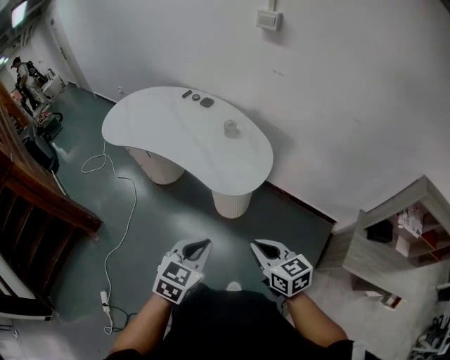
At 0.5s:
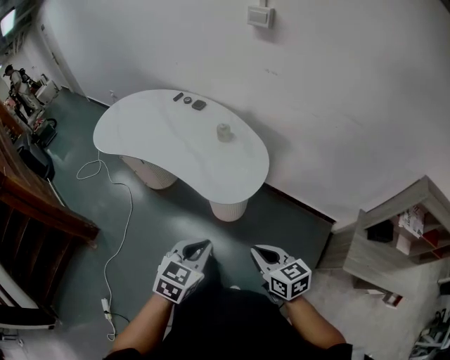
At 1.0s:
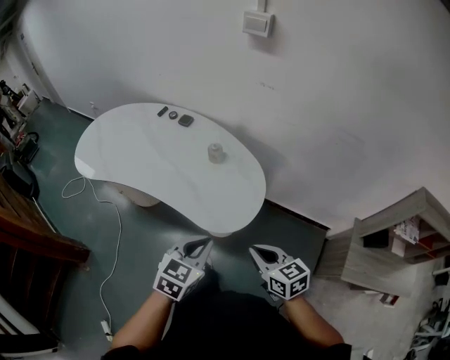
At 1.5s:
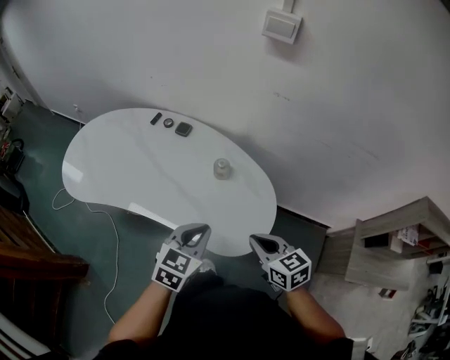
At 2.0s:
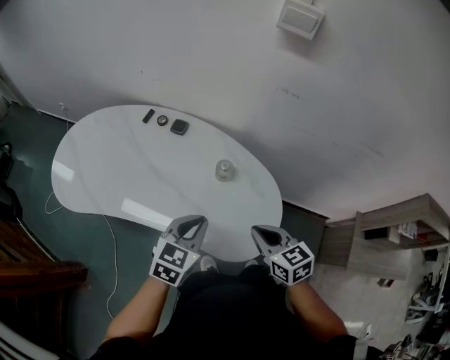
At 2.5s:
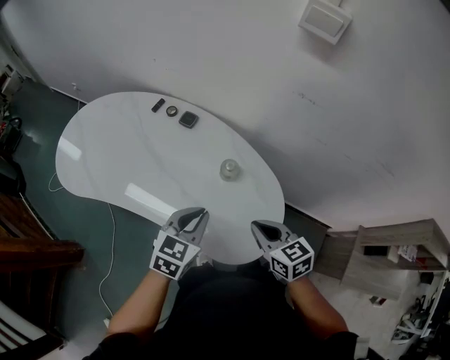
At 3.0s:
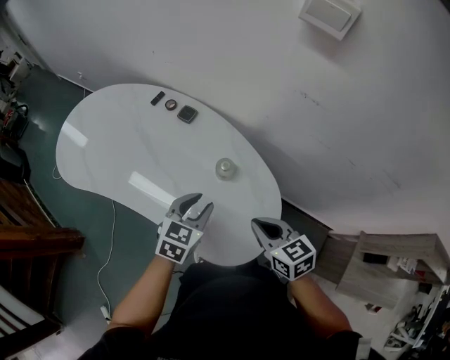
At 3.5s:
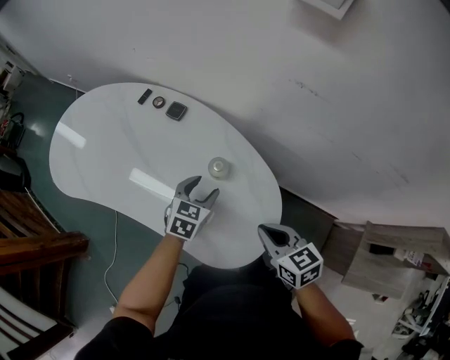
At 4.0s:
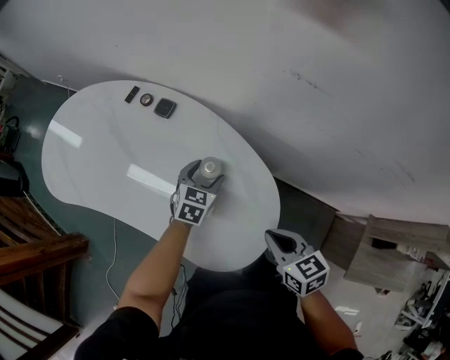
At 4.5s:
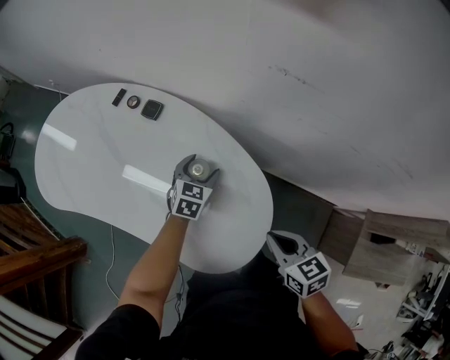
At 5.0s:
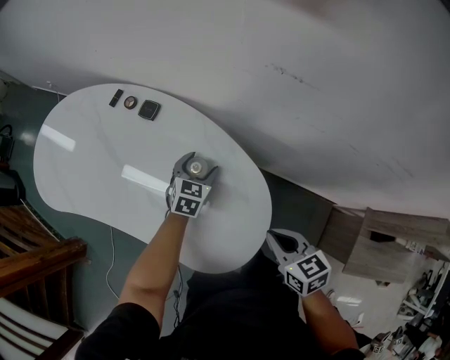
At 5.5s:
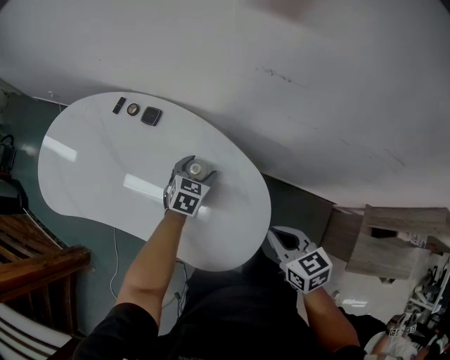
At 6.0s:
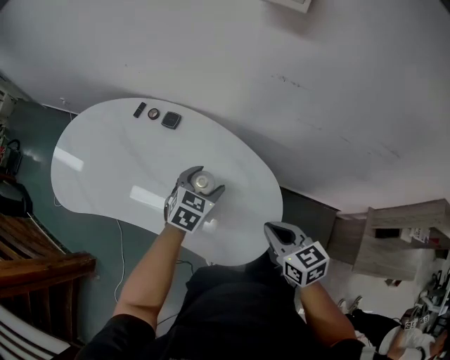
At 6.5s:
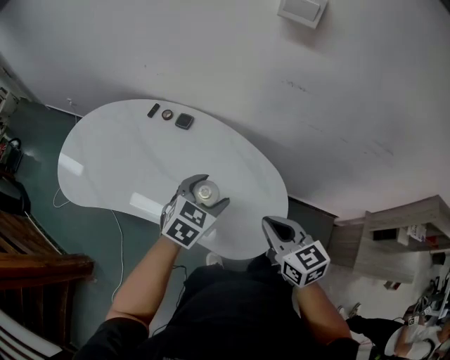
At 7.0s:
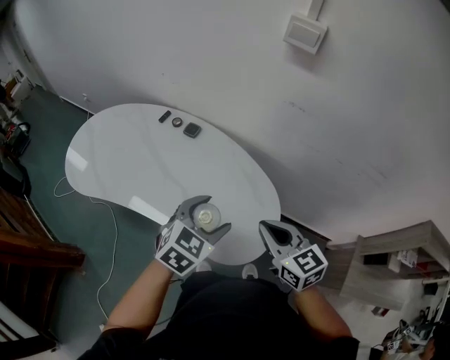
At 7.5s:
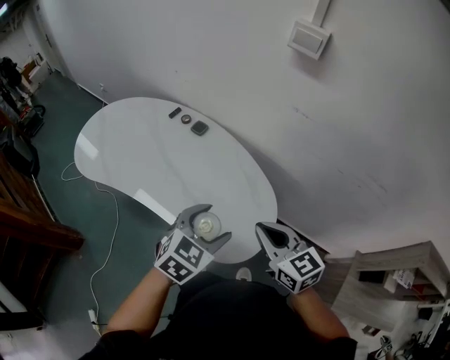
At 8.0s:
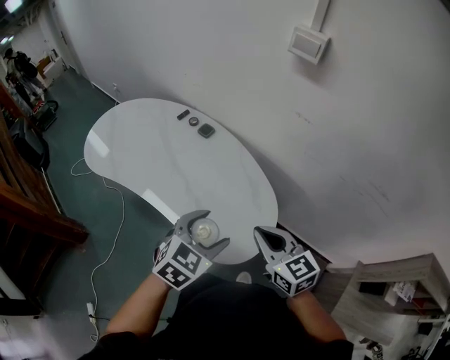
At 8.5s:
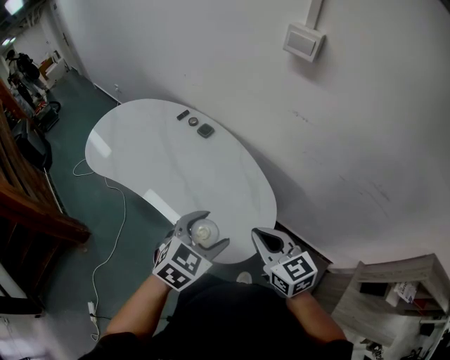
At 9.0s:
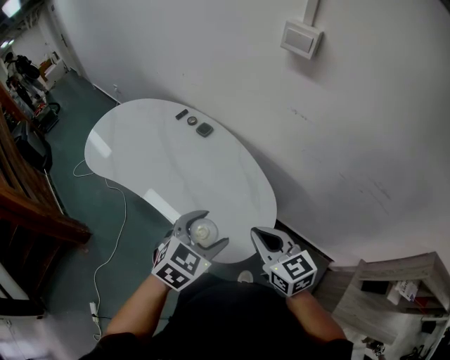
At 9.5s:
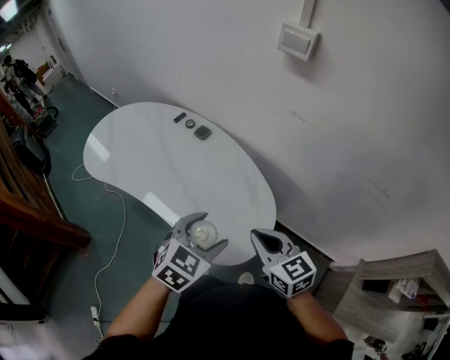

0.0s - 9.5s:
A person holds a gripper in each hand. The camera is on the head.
0.0s - 2.0s: The two grippers go some 40 cm forward.
2.0s - 4.0s: The right gripper shifts approximately 15 cm to the right, downward and forward. Meanwhile the left gripper shifts some 30 cm forward, downward and to the right, and opens.
4.0s - 5.5s: The grippers make only small movements.
5.5s - 7.5s: The right gripper is displaced upward, to the left and backward by approximately 20 cm, and changes its angle by about 30 degrees. The left gripper moves backward and upward, about 35 cm.
7.5s - 9.5s: The grippers make only small movements.

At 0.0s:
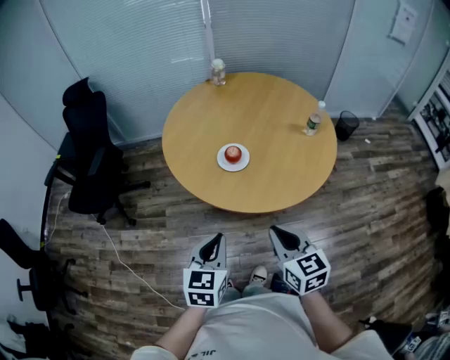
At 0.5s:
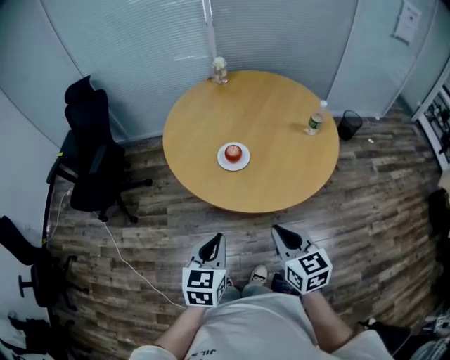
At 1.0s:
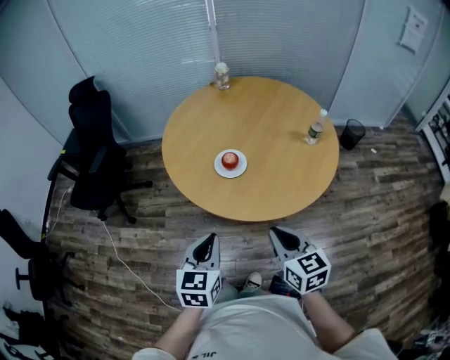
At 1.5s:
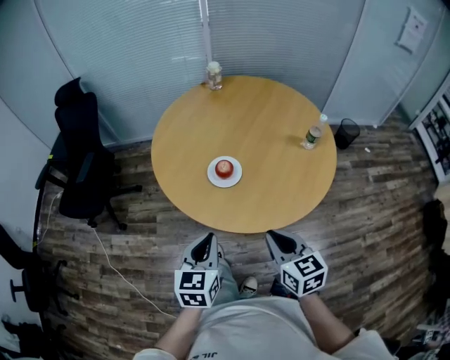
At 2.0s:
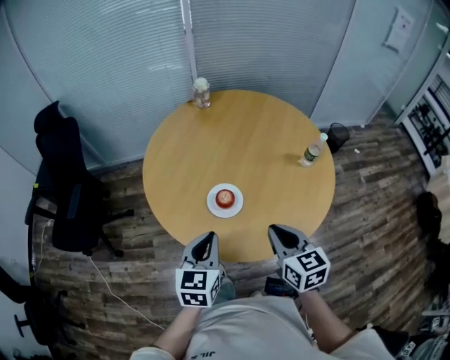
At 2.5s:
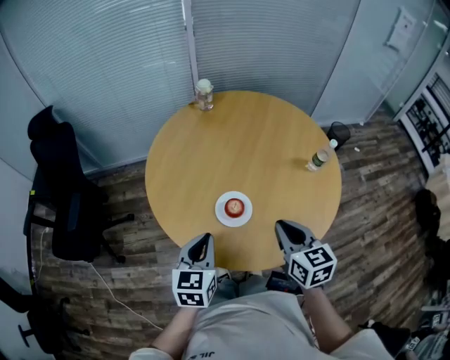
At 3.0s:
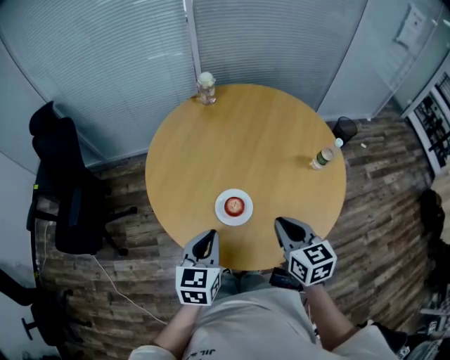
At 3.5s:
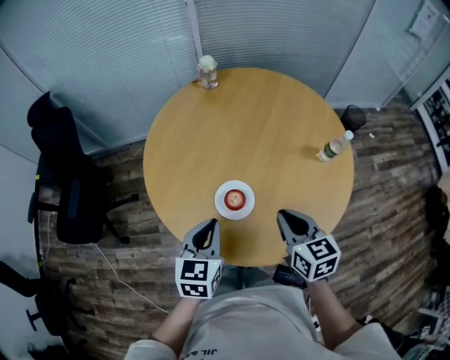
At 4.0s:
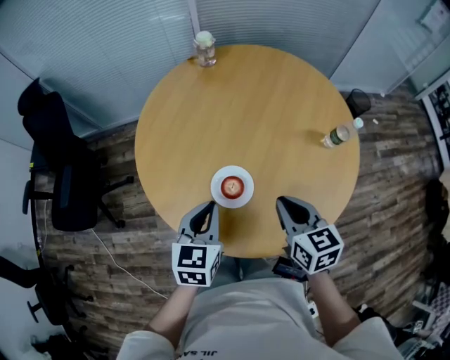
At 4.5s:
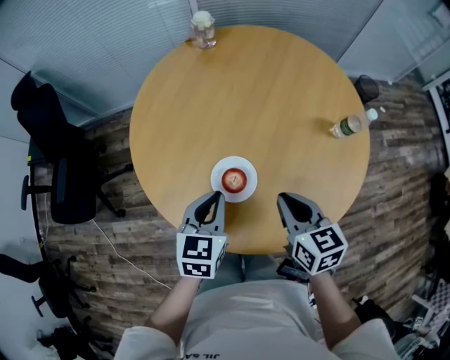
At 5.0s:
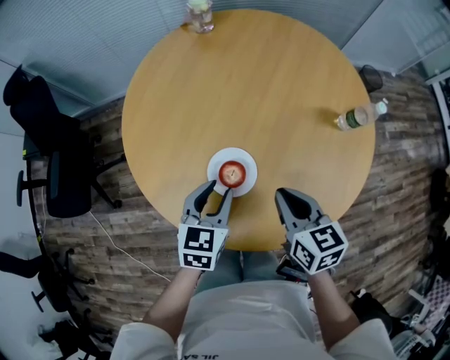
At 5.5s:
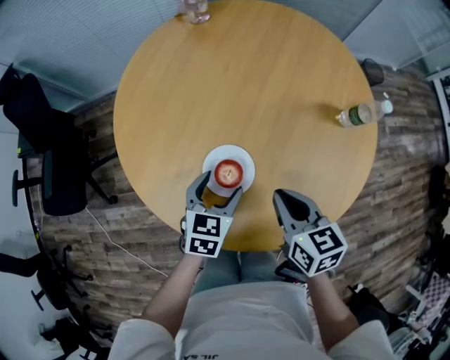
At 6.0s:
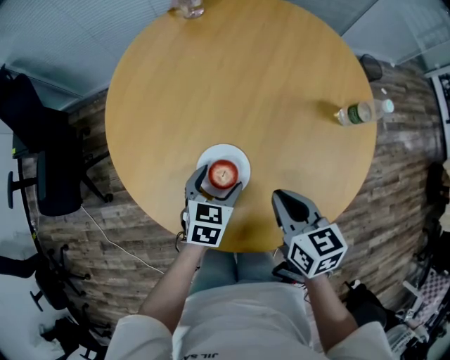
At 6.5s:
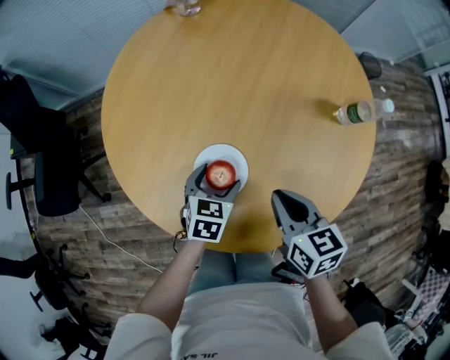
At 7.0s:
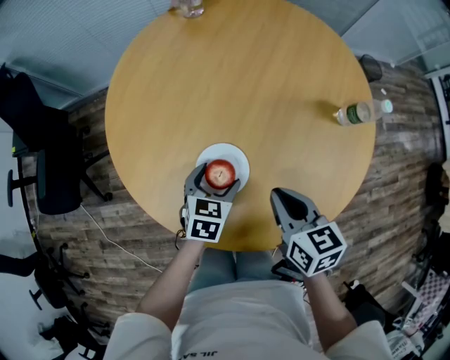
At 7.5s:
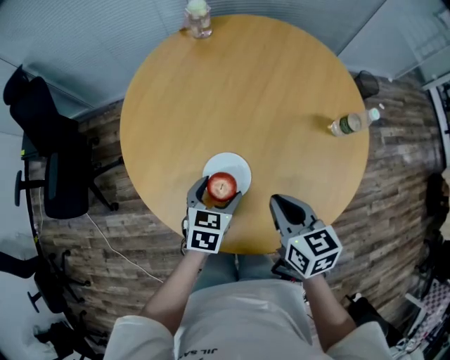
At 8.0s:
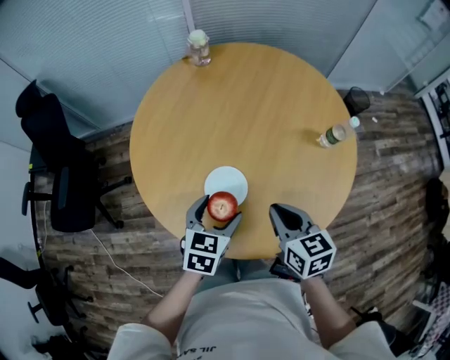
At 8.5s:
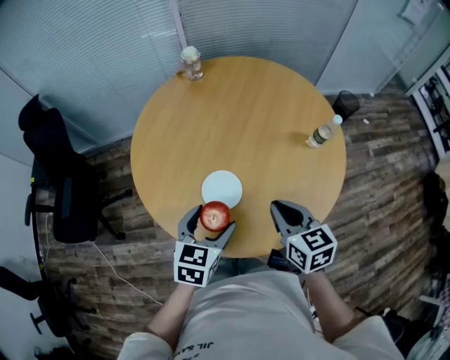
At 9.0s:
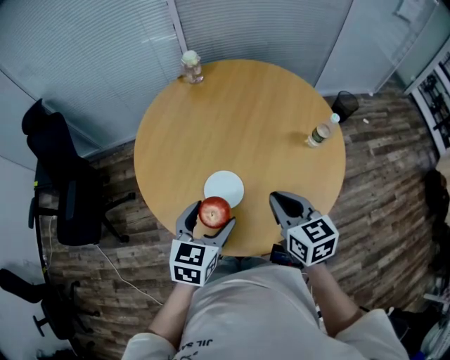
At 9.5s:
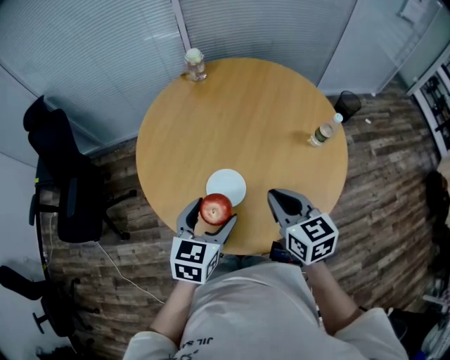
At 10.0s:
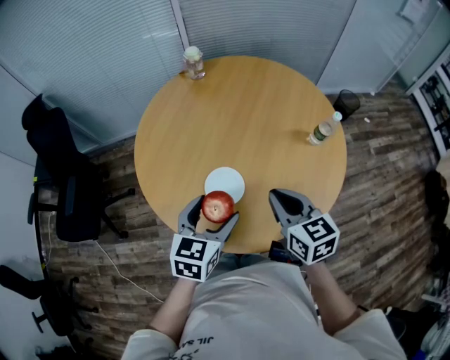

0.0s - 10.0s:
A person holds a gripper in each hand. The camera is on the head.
0.0s - 2.0s: Both grippers move forward, approximately 20 cm.
2.0s - 4.0s: The two grippers go some 10 cm forward.
4.0s - 6.0s: The left gripper moves downward, some 15 cm, and opens up; the right gripper moves downward, roughly 10 cm.
6.0s - 8.0s: The left gripper goes roughly 10 cm upward, while the right gripper shifts approximately 5 cm upward.
8.0s - 10.0s: Both grippers move upward, some 5 cm.

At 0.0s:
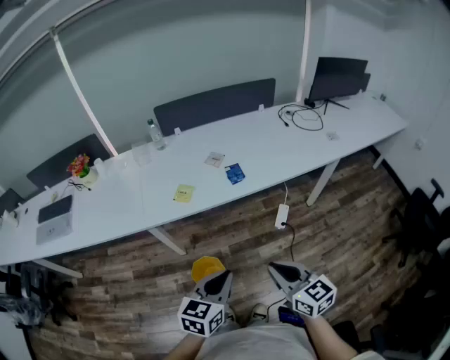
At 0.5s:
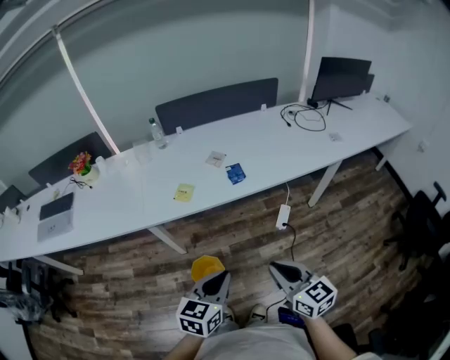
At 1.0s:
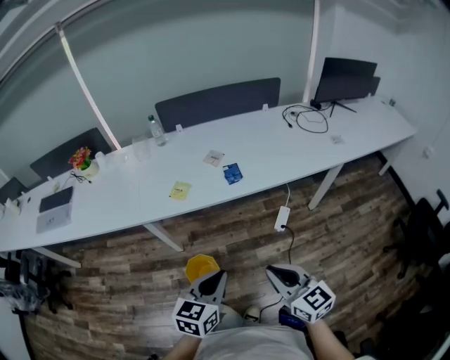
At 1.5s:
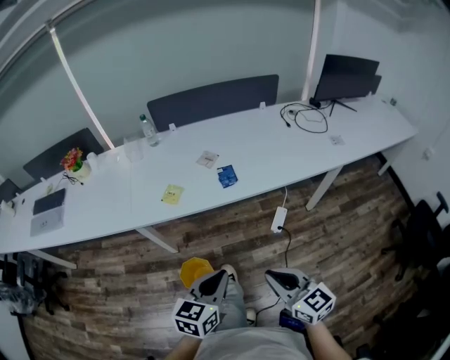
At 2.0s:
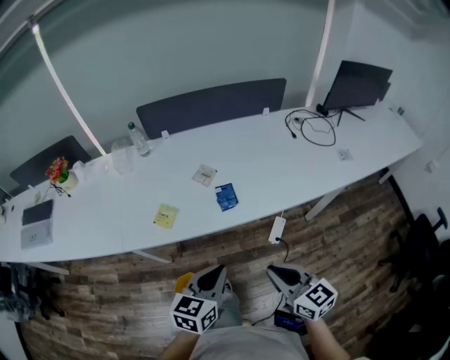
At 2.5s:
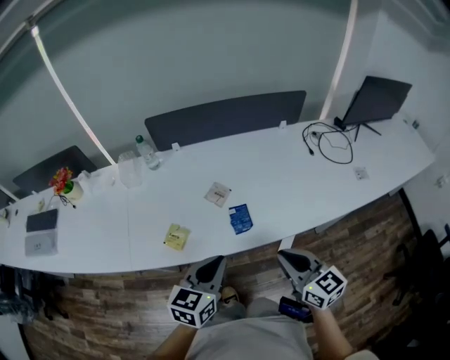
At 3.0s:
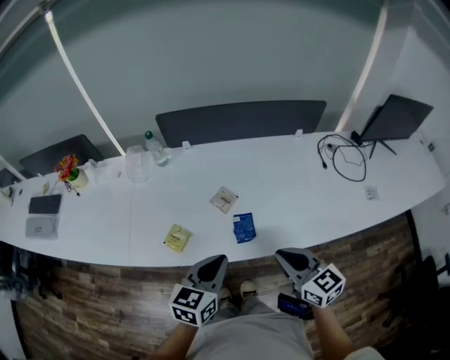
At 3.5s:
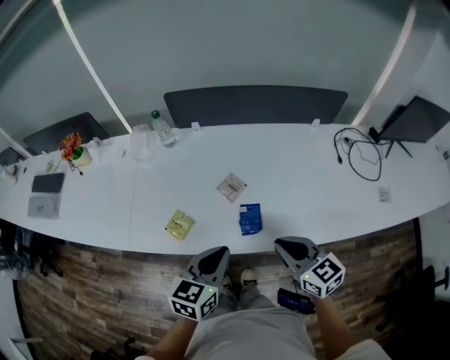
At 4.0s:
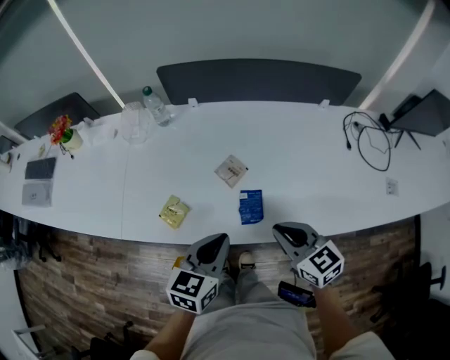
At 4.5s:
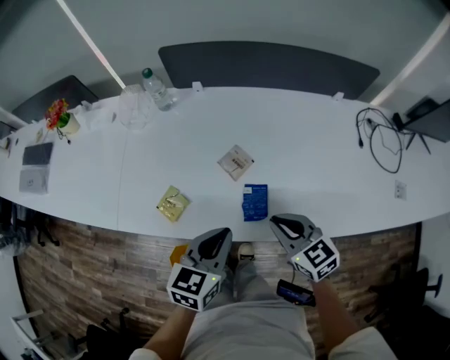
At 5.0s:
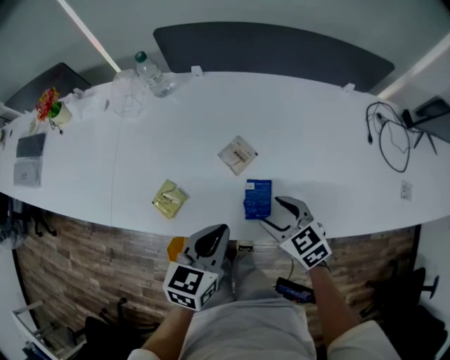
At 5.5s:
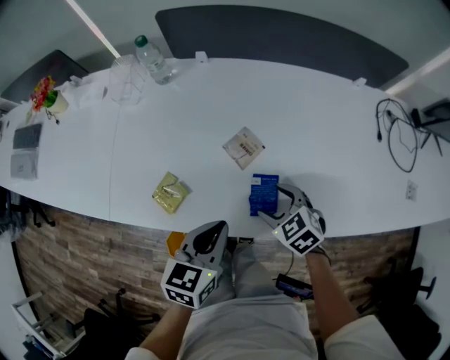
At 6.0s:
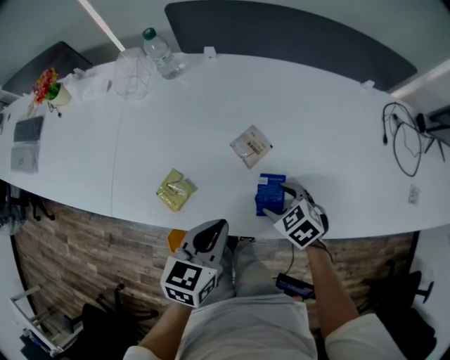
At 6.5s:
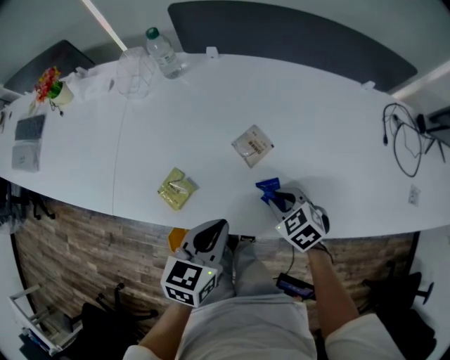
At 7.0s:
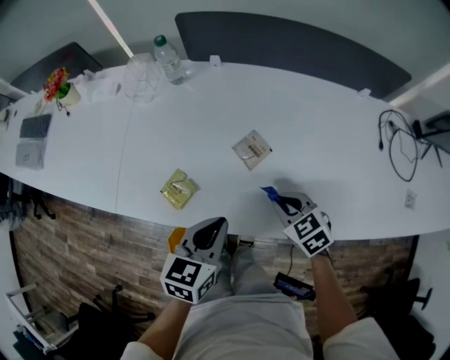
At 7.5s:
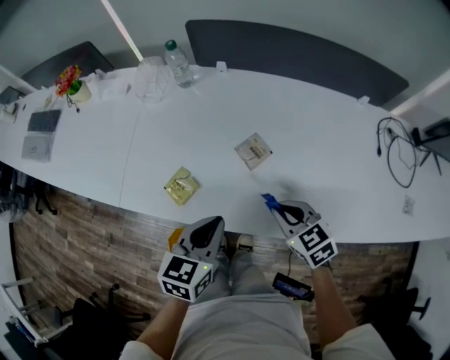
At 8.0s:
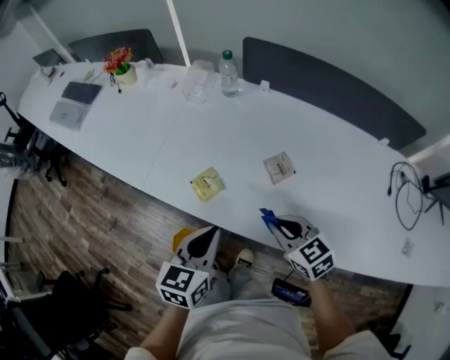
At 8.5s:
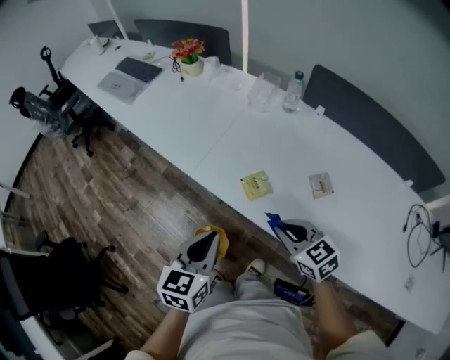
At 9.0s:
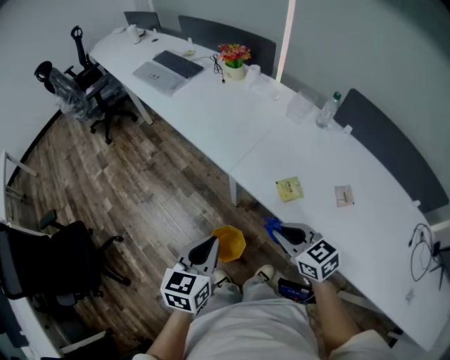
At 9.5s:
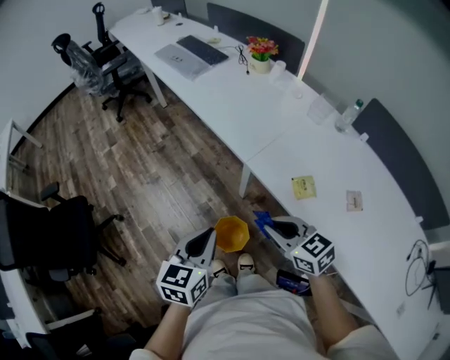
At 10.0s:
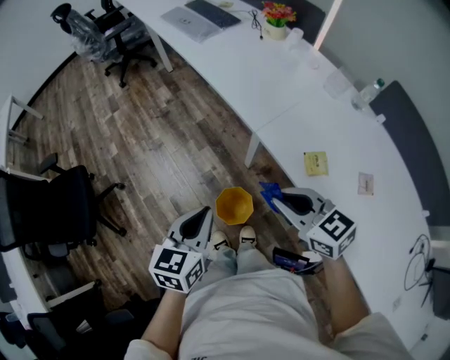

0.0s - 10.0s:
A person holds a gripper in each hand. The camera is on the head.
0.0s - 2.0s: The left gripper travels forward by roughly 20 cm. Meanwhile the right gripper shifts roughly 20 cm forward and to the right.
2.0s - 4.0s: Both grippers move forward, some 25 cm. The right gripper changes its angle by roughly 20 degrees.
4.0s - 6.0s: The left gripper moves downward, some 10 cm, while the right gripper travels downward and forward by approximately 20 cm, tilts its fingers some 40 degrees downward, and opens up.
6.0s - 8.0s: The left gripper travels to the left and upward by approximately 10 cm, and swivels approximately 20 degrees. Meanwhile the right gripper goes approximately 15 cm upward and to the left, rotates some 30 degrees, and closes up.
8.0s - 10.0s: The right gripper moves approximately 35 cm, and changes its angle by roughly 40 degrees, while the left gripper moves about 35 cm, and rotates about 30 degrees.
